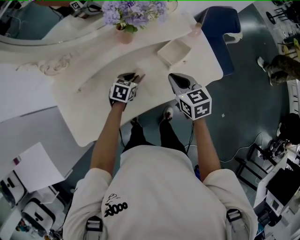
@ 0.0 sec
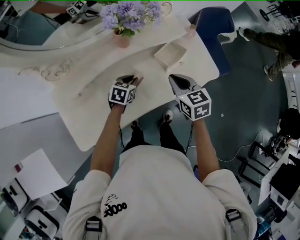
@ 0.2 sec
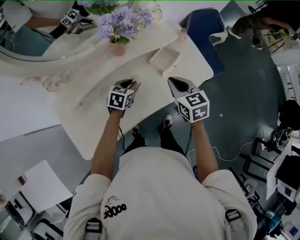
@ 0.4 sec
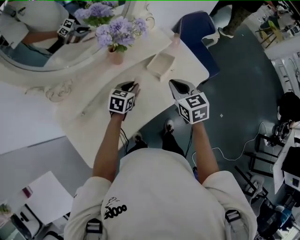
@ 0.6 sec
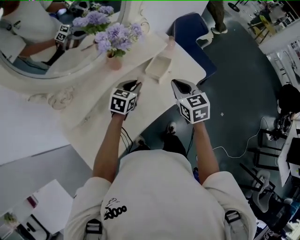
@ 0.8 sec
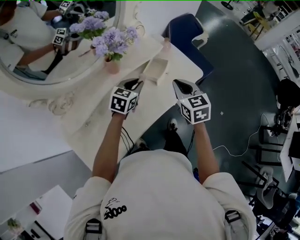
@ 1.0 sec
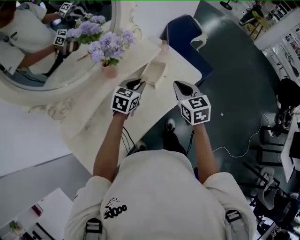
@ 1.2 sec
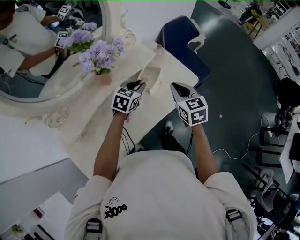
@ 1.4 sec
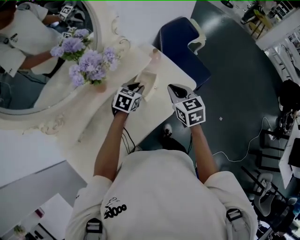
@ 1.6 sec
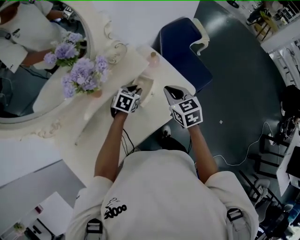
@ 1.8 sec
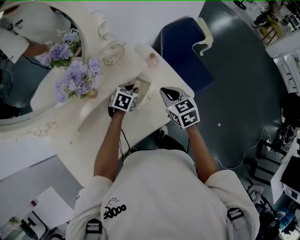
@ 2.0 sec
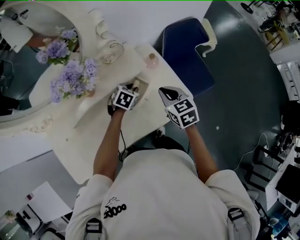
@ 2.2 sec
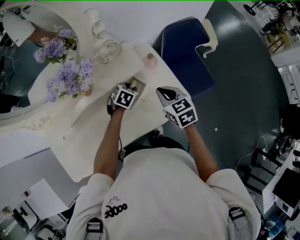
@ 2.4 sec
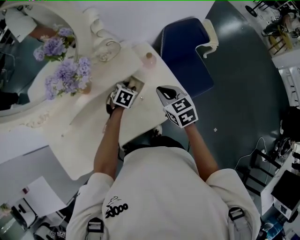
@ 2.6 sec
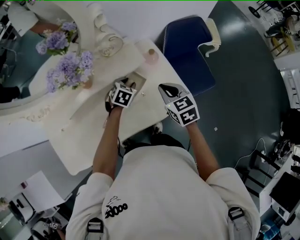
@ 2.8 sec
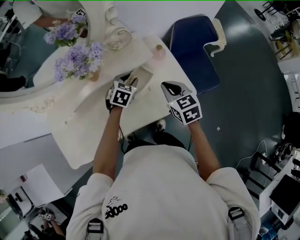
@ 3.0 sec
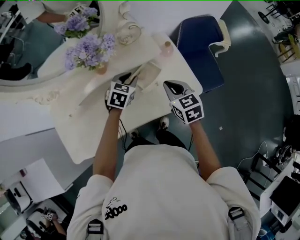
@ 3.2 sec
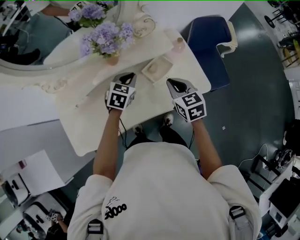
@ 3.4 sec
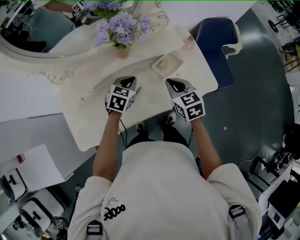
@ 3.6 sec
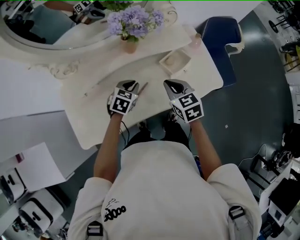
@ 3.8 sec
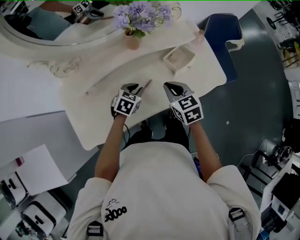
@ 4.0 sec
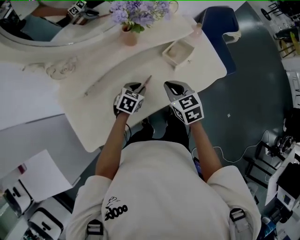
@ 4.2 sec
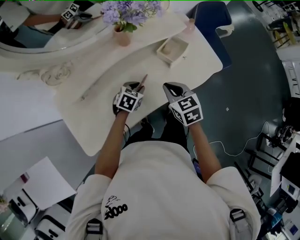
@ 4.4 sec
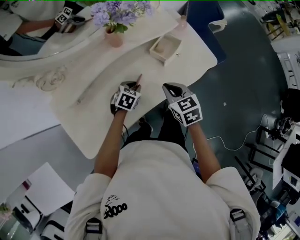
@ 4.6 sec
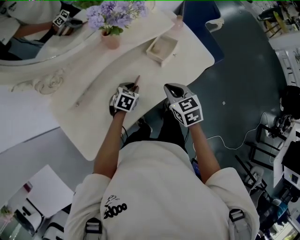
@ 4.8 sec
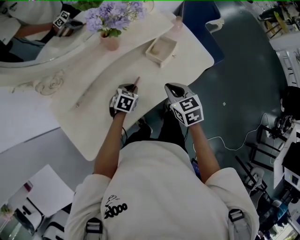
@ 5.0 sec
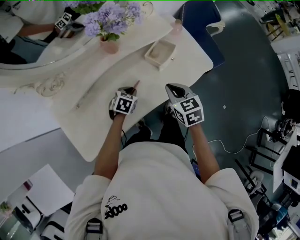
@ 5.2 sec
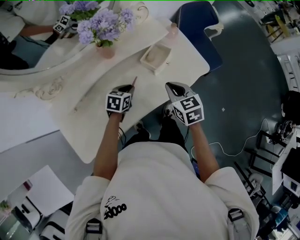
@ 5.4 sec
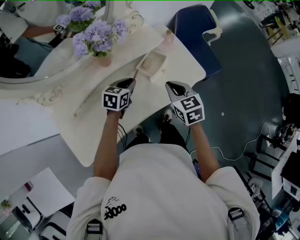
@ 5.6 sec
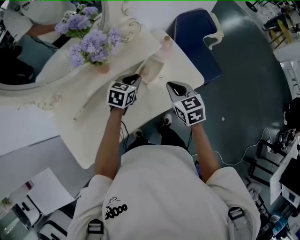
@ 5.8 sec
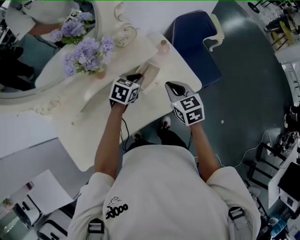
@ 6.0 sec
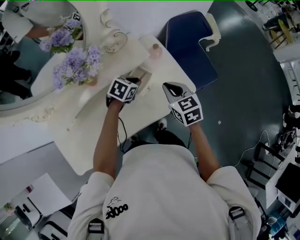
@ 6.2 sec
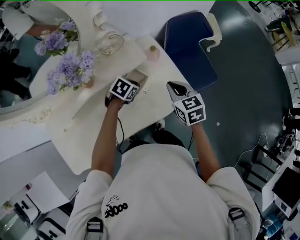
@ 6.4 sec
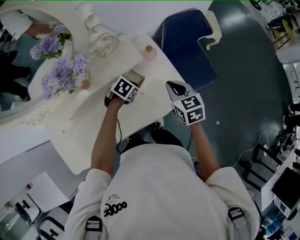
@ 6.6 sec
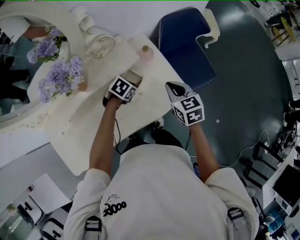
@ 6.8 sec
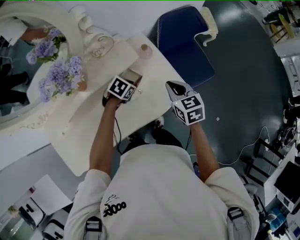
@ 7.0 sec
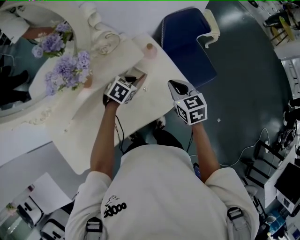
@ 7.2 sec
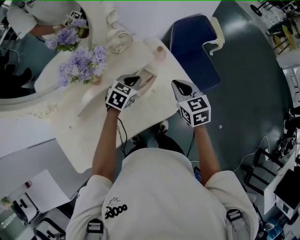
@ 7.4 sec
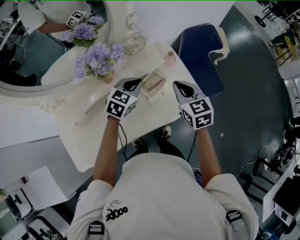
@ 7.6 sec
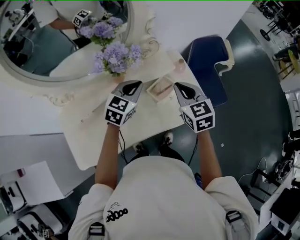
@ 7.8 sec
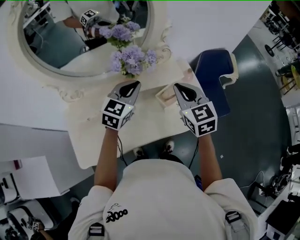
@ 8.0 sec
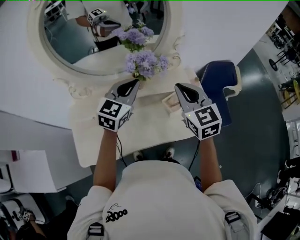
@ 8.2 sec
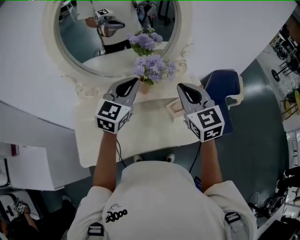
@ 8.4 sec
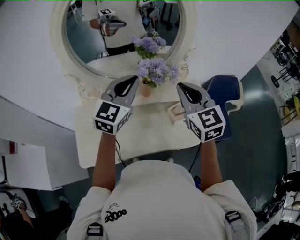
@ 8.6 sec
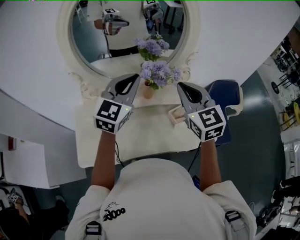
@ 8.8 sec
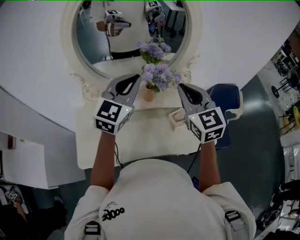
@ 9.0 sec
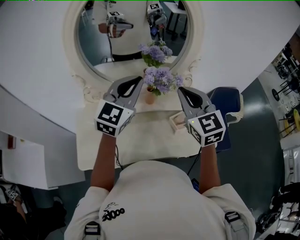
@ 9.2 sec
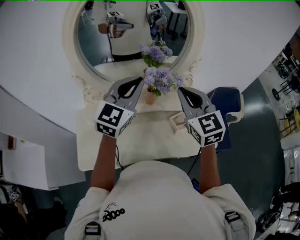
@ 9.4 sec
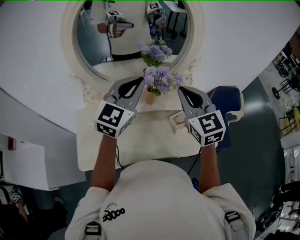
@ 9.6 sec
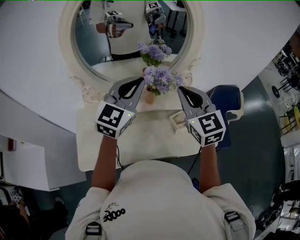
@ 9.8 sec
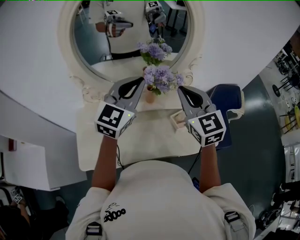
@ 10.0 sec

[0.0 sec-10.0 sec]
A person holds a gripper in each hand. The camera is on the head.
0.0 sec to 1.4 sec: The left gripper heads upward, to the right and forward, covering roughly 20 cm, and turns by approximately 30 degrees. Meanwhile the right gripper shifts roughly 10 cm to the right and upward, and turns by approximately 30 degrees.
1.4 sec to 2.8 sec: The left gripper moves downward, roughly 10 cm, and swivels roughly 30 degrees; the right gripper changes place by approximately 10 cm, and swivels about 20 degrees.
2.8 sec to 4.2 sec: The grippers both shift to the left and backward by about 25 cm. The left gripper closes, then opens again.
4.2 sec to 5.8 sec: The left gripper is displaced forward, upward and to the right by roughly 20 cm; the right gripper travels to the right and forward by roughly 15 cm.
5.8 sec to 7.2 sec: The right gripper travels forward and to the right by approximately 10 cm; the left gripper is displaced forward, to the right and downward by roughly 10 cm, and turns by roughly 20 degrees.
7.2 sec to 8.6 sec: The two grippers go some 30 cm upward. The left gripper angles its fingers upward, by approximately 50 degrees. The right gripper changes its angle by about 40 degrees.
8.6 sec to 10.0 sec: The grippers make only small movements.

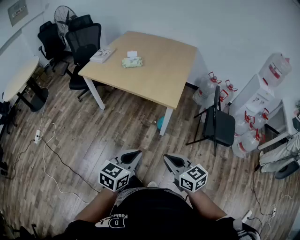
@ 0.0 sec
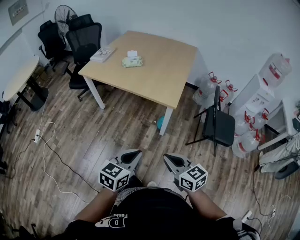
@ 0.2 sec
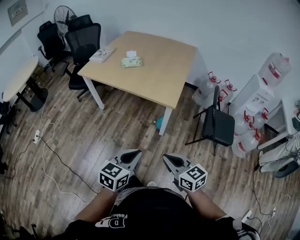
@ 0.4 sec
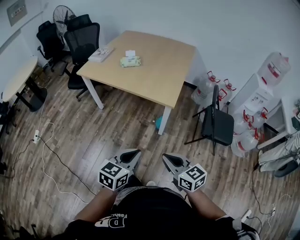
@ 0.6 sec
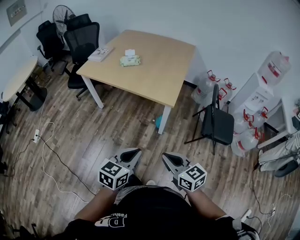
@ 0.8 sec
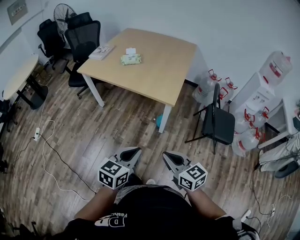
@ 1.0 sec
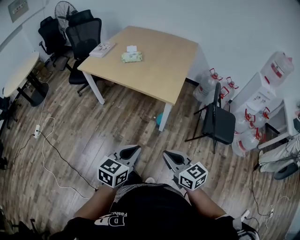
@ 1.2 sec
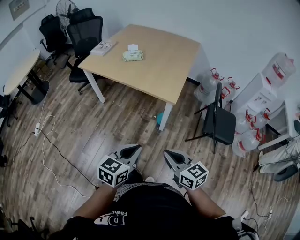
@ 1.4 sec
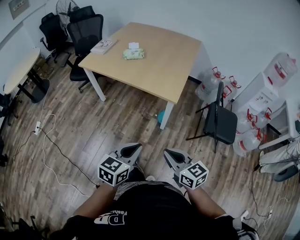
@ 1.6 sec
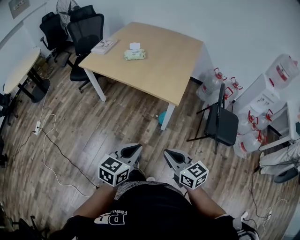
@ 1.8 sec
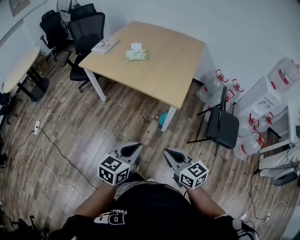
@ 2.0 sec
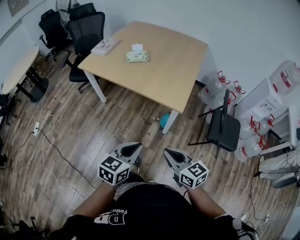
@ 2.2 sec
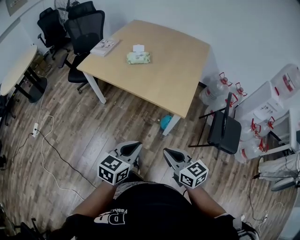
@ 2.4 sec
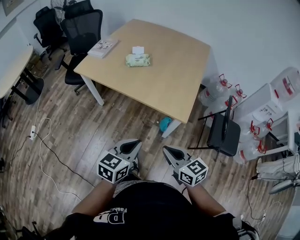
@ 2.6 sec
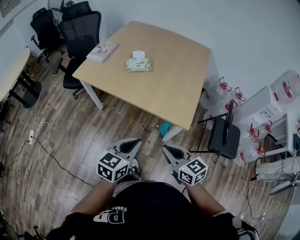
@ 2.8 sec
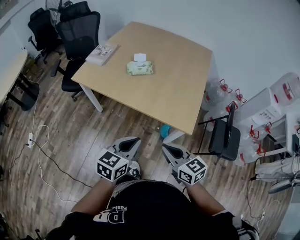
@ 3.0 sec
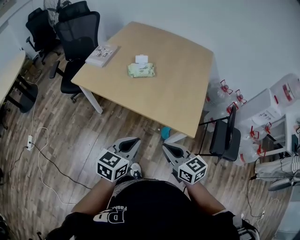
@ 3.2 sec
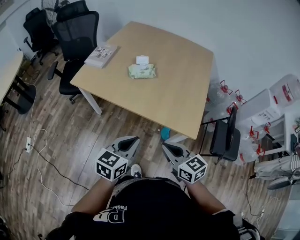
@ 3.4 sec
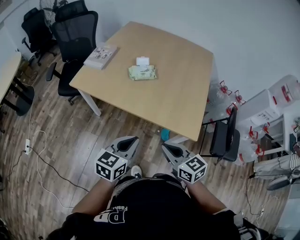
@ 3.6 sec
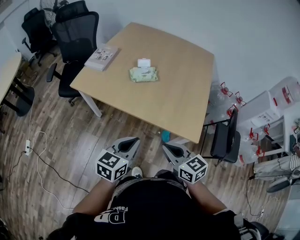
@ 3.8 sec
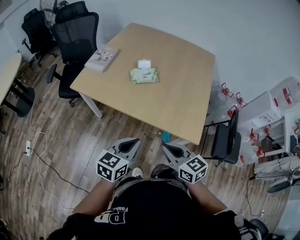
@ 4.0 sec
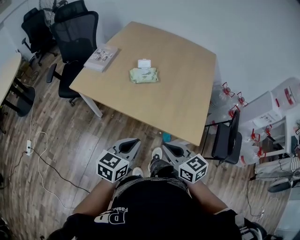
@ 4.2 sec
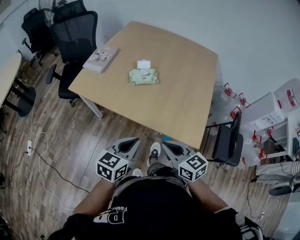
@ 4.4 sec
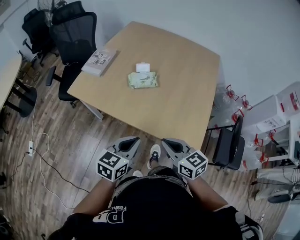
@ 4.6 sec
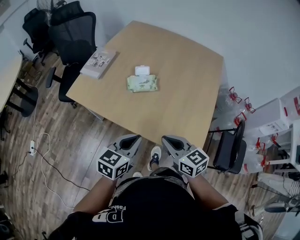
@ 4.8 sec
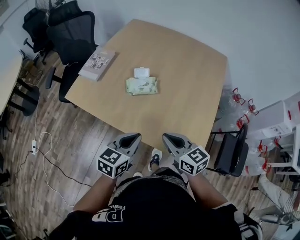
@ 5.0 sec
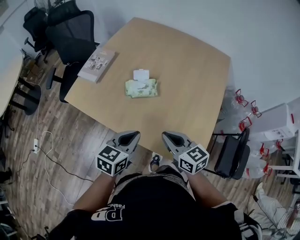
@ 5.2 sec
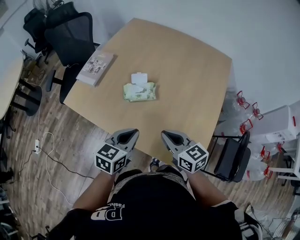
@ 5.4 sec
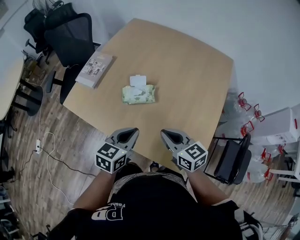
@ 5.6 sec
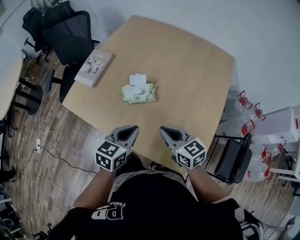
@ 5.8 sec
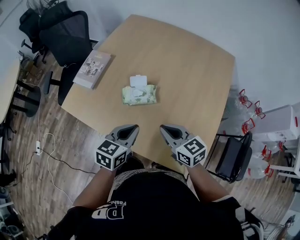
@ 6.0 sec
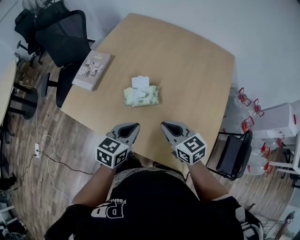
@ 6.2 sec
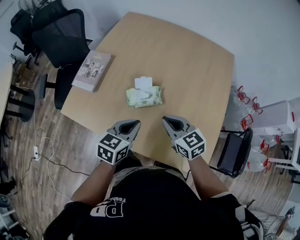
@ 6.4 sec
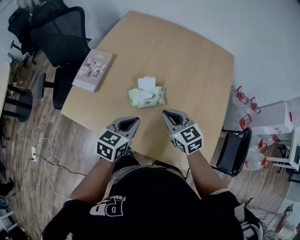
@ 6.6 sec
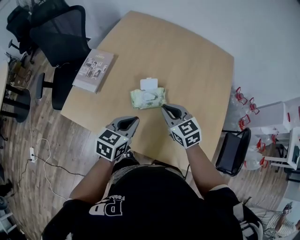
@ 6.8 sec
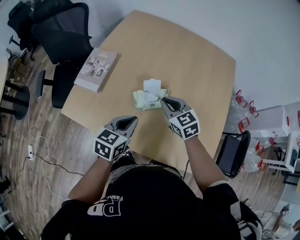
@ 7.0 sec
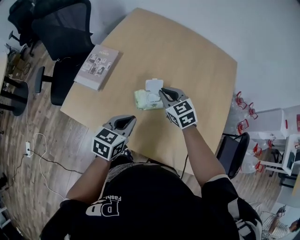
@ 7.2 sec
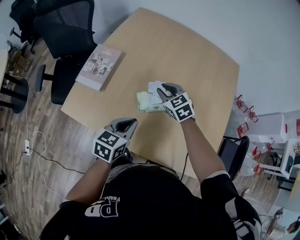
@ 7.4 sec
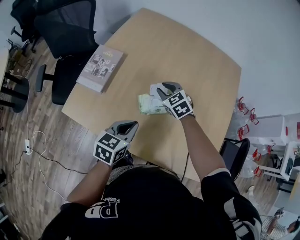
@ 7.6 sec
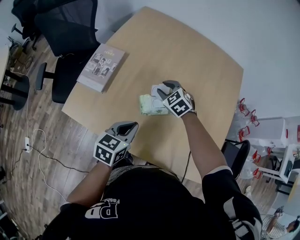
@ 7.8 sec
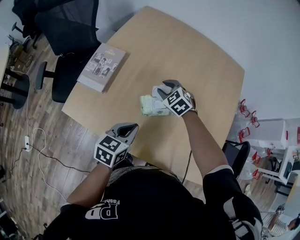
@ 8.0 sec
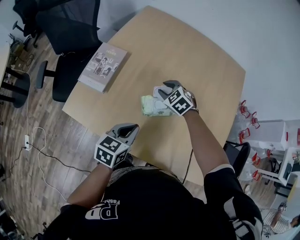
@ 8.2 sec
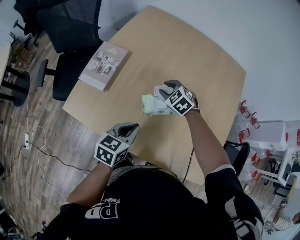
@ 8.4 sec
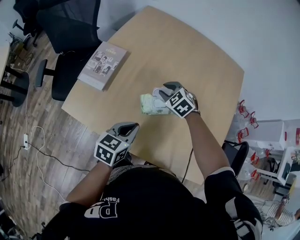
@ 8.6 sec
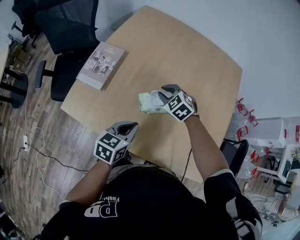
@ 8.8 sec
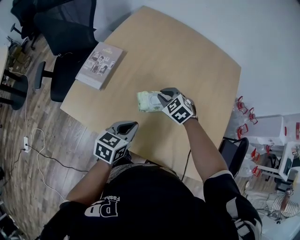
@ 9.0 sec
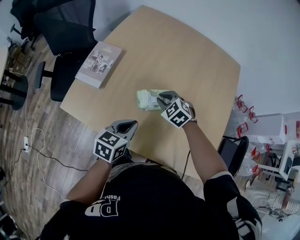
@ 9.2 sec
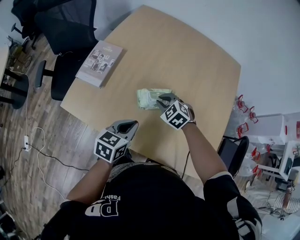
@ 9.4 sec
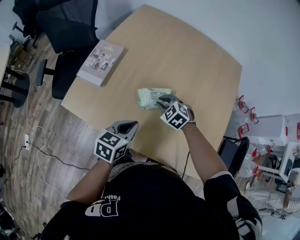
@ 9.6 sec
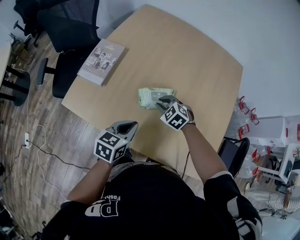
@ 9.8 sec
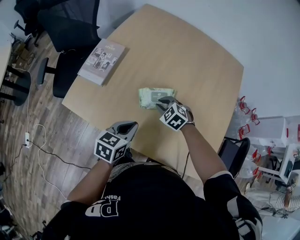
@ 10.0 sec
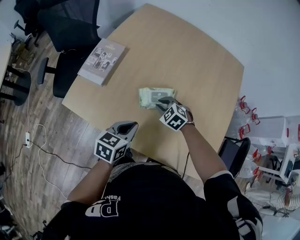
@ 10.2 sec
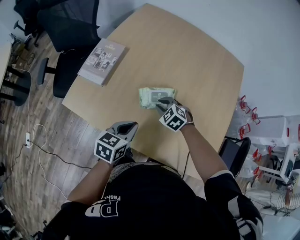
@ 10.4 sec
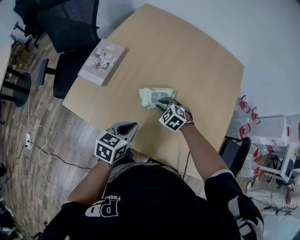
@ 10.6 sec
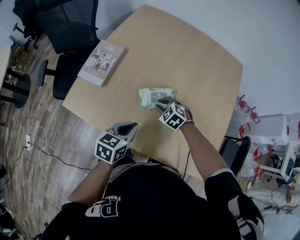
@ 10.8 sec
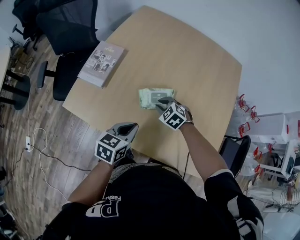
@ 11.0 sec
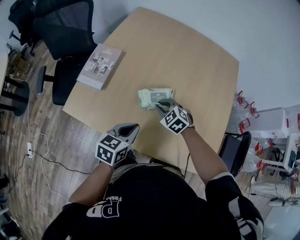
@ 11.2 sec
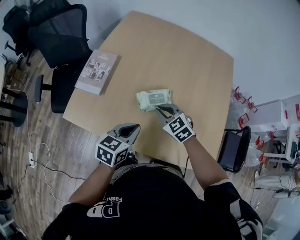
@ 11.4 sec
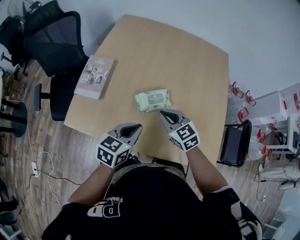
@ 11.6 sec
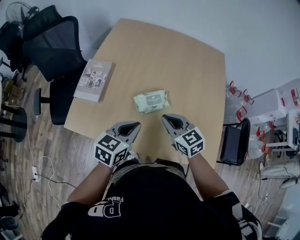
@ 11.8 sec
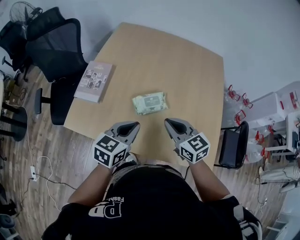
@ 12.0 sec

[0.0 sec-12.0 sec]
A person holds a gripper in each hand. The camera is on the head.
0.0 sec to 1.6 sec: The grippers make only small movements.
1.6 sec to 3.0 sec: The right gripper goes approximately 30 cm forward and to the left. The left gripper is displaced forward by about 30 cm.
3.0 sec to 4.4 sec: Both grippers move forward, approximately 10 cm.
4.4 sec to 6.0 sec: The two grippers go about 25 cm forward.
6.0 sec to 7.6 sec: The right gripper is displaced forward and to the left by some 30 cm, swivels about 40 degrees, and opens, while the left gripper moves to the left and forward, approximately 15 cm.
7.6 sec to 9.0 sec: The grippers move only a little.
9.0 sec to 10.4 sec: The right gripper is displaced downward and backward by some 10 cm.
10.4 sec to 12.0 sec: The left gripper moves upward, roughly 10 cm. Meanwhile the right gripper is displaced upward and backward by approximately 20 cm, and points its fingers some 30 degrees further upward.

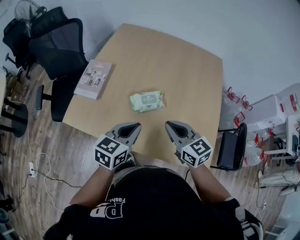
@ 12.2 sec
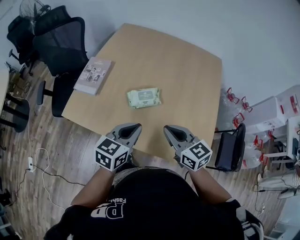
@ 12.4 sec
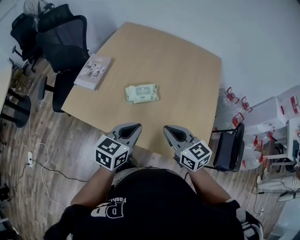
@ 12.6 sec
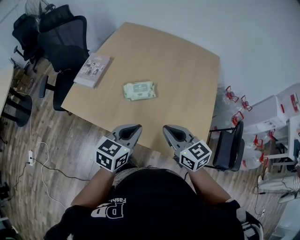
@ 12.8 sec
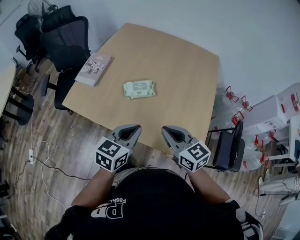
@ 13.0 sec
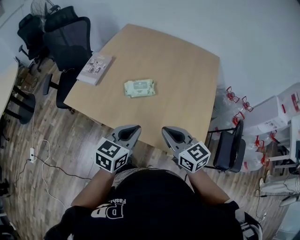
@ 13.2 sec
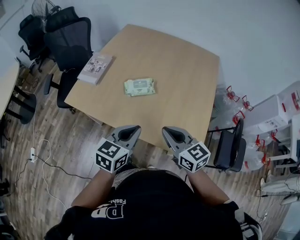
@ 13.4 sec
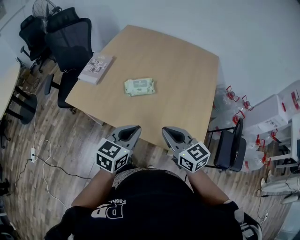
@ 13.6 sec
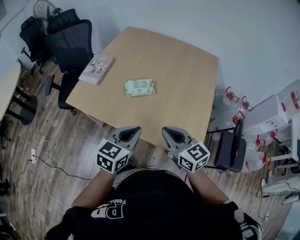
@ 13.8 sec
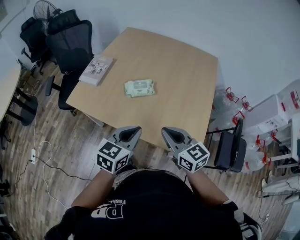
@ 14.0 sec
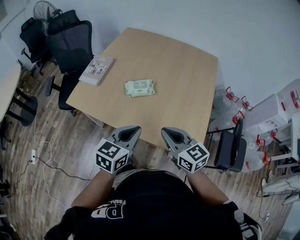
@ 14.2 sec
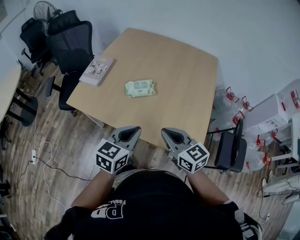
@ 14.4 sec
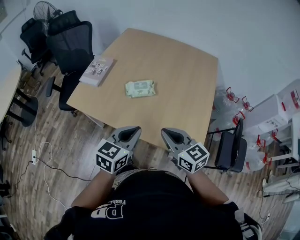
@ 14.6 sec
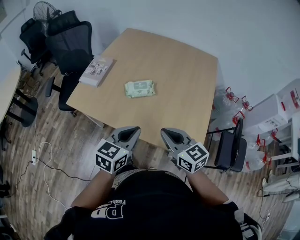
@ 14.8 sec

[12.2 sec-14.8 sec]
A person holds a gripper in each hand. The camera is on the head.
12.2 sec to 13.4 sec: The grippers both shift backward and to the right by roughly 15 cm.
13.4 sec to 14.8 sec: The grippers move only a little.
